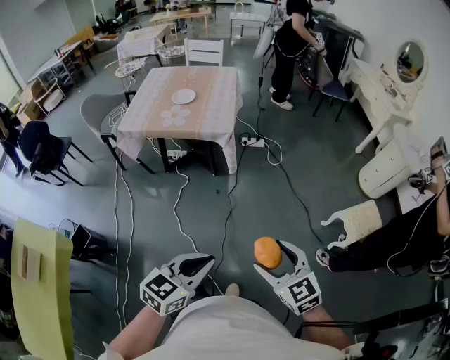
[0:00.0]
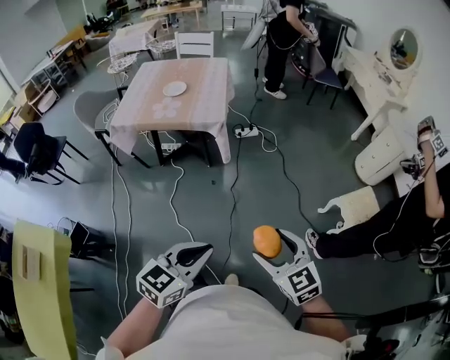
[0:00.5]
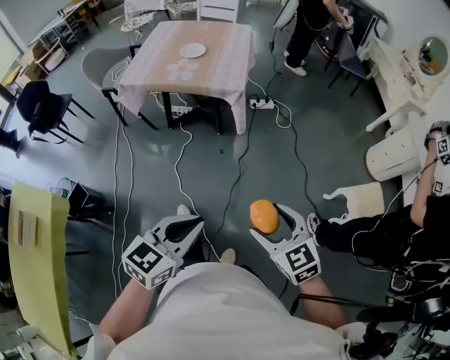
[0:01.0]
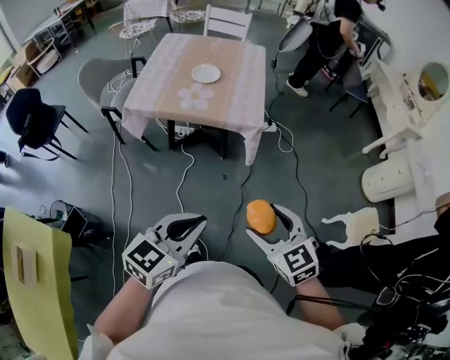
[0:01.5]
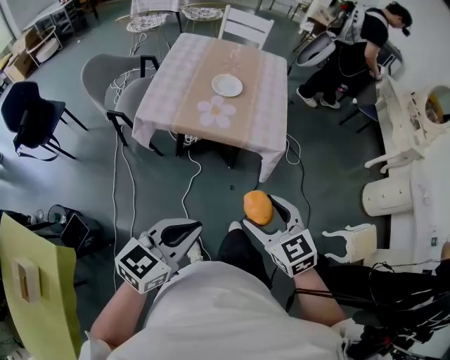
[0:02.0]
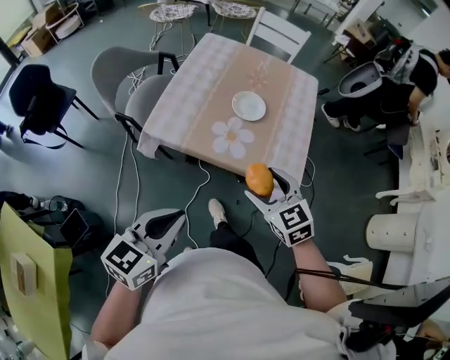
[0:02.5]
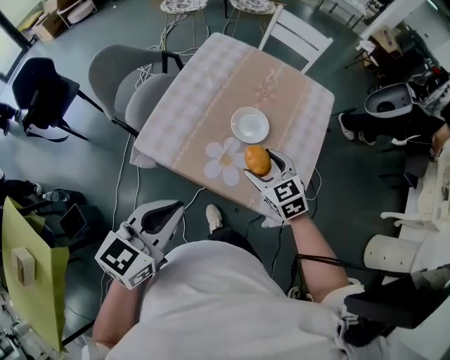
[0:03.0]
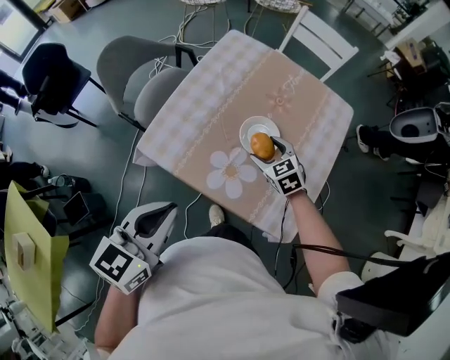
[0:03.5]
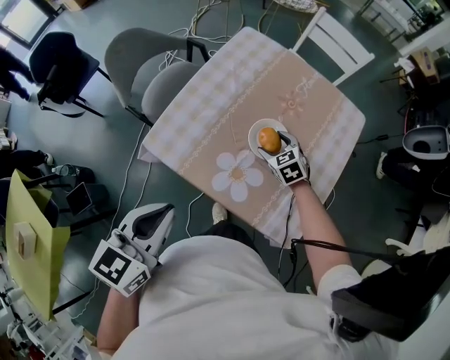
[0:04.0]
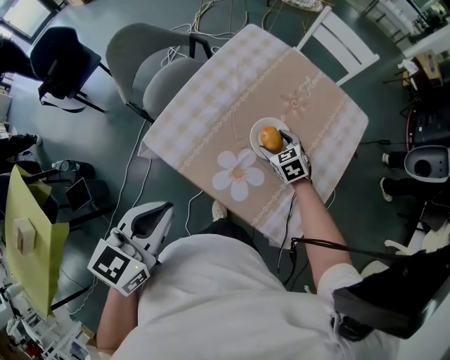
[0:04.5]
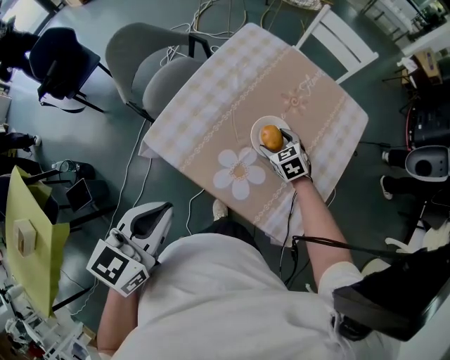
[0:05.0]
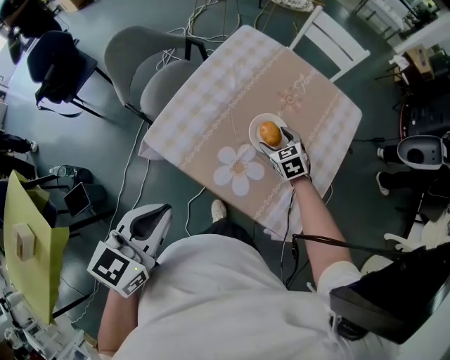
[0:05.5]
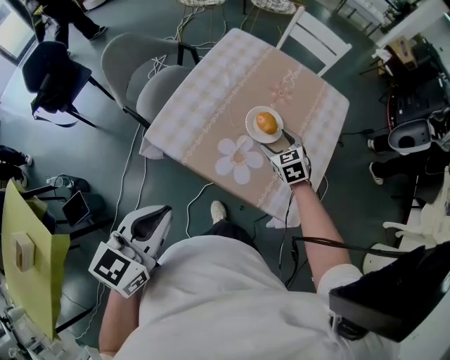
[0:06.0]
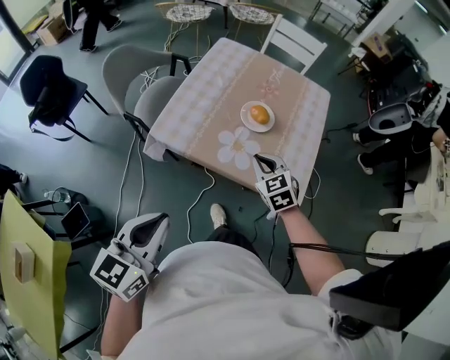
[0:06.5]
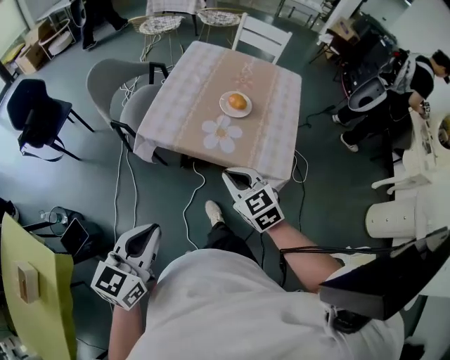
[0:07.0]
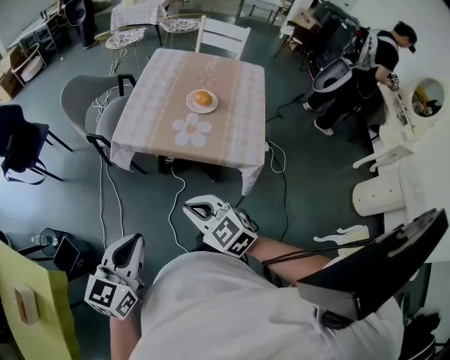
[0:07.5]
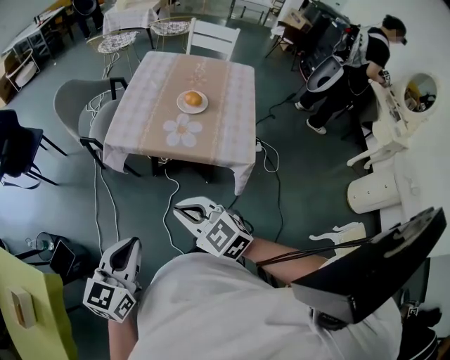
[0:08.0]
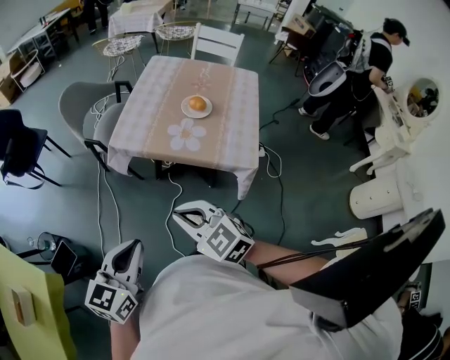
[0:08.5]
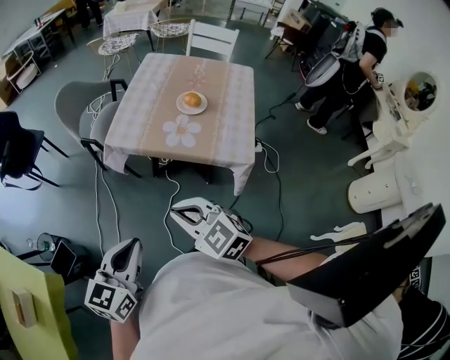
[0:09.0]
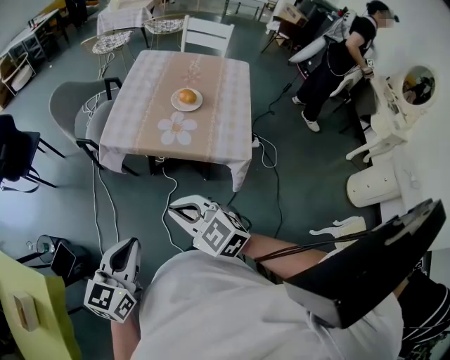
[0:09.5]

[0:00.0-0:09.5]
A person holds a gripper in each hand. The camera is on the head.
0:00.0 to 0:02.0: Both grippers move to the left and forward, some 40 cm.
0:02.0 to 0:04.0: The right gripper ends up roughly 60 cm from where it was, and changes its angle by roughly 30 degrees, while the left gripper shifts by some 35 cm, and changes its angle by about 40 degrees.
0:04.0 to 0:05.5: The grippers stay close to where they were, moving slightly.
0:05.5 to 0:07.5: The right gripper heads backward, covering approximately 50 cm, and closes up. The left gripper shifts about 30 cm backward.
0:07.5 to 0:09.5: The grippers stay close to where they were, moving slightly.

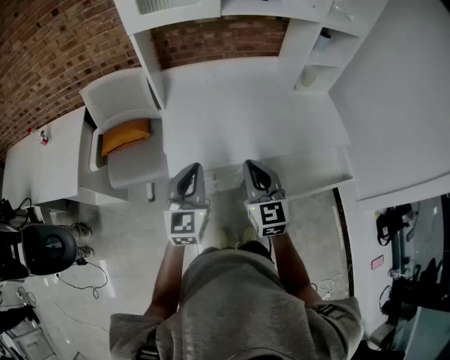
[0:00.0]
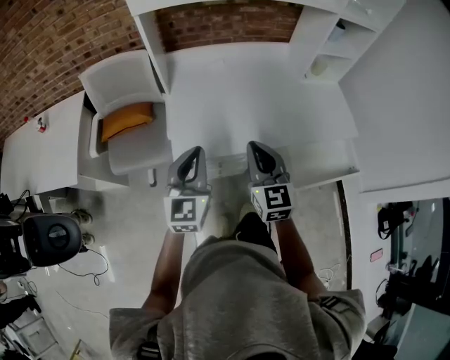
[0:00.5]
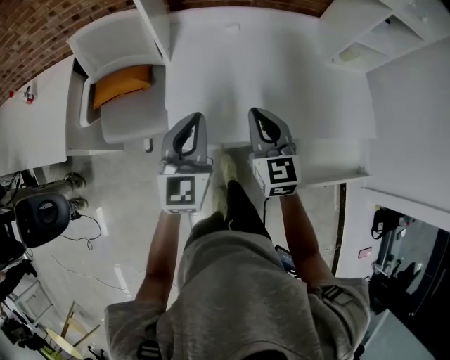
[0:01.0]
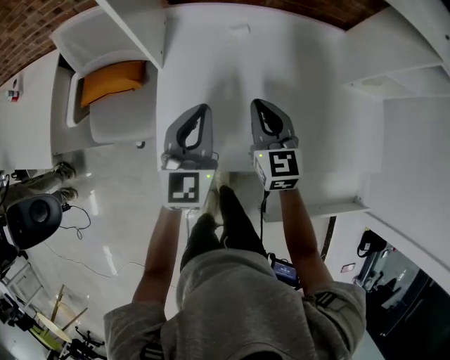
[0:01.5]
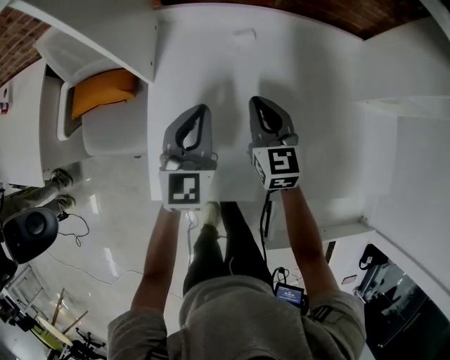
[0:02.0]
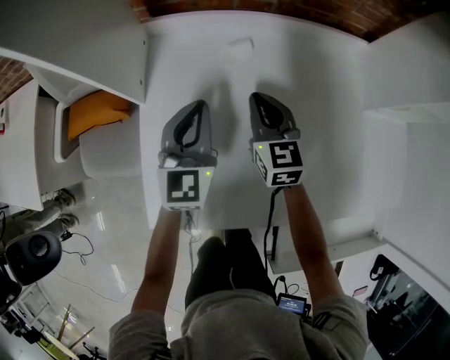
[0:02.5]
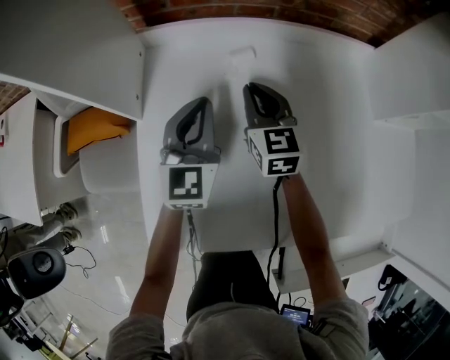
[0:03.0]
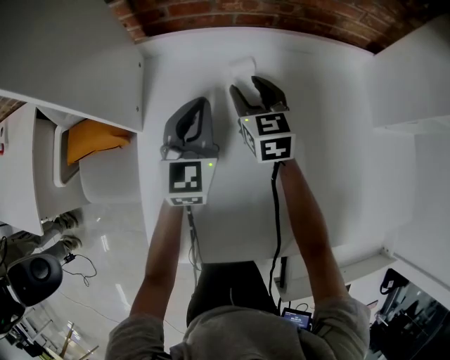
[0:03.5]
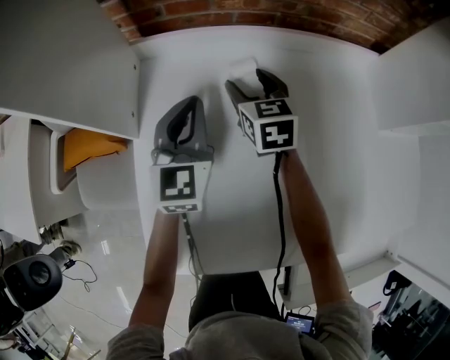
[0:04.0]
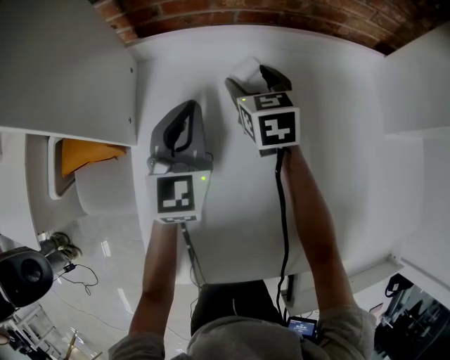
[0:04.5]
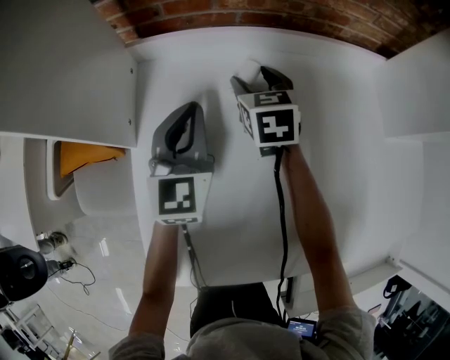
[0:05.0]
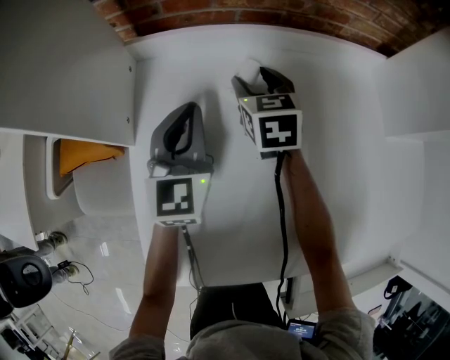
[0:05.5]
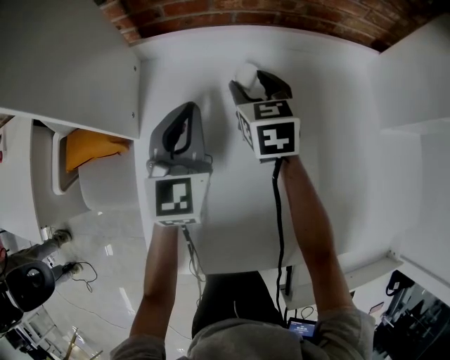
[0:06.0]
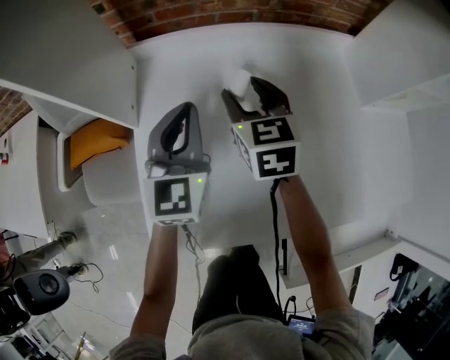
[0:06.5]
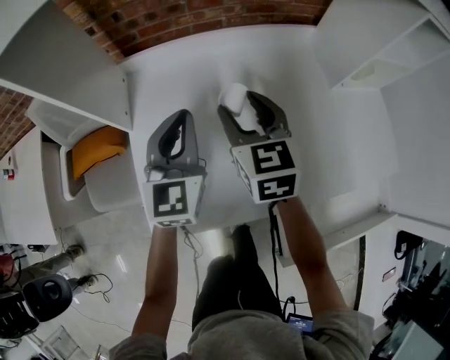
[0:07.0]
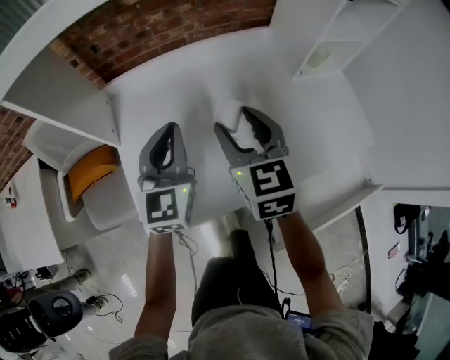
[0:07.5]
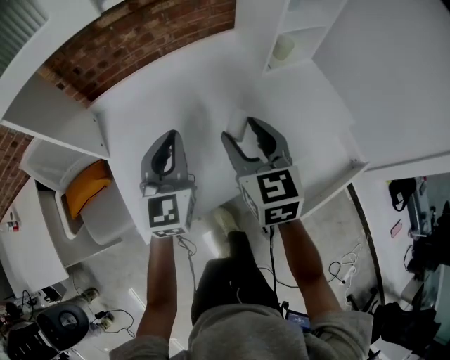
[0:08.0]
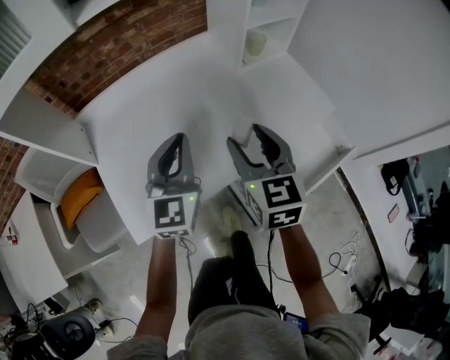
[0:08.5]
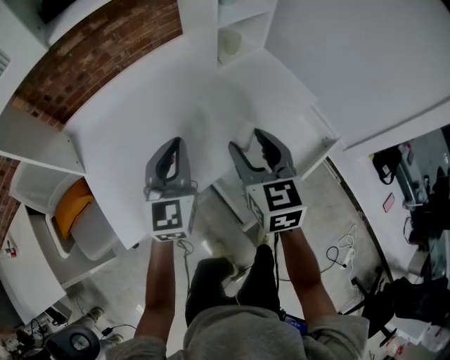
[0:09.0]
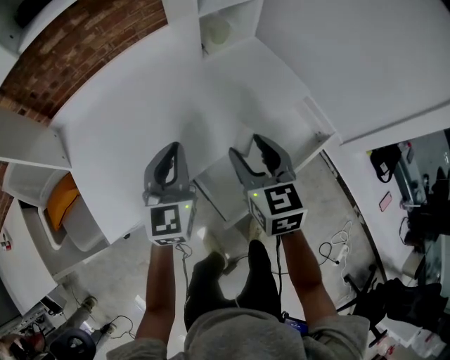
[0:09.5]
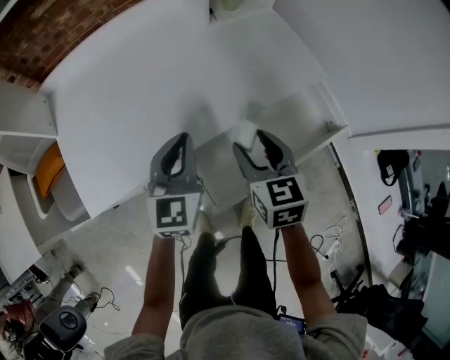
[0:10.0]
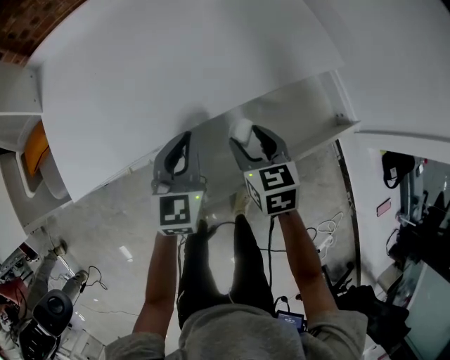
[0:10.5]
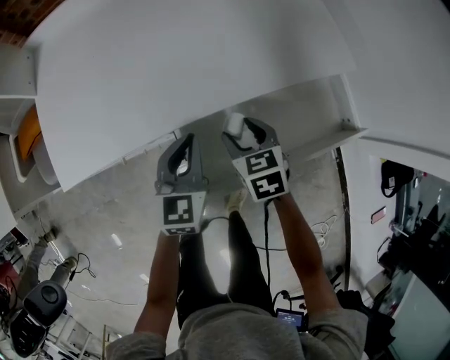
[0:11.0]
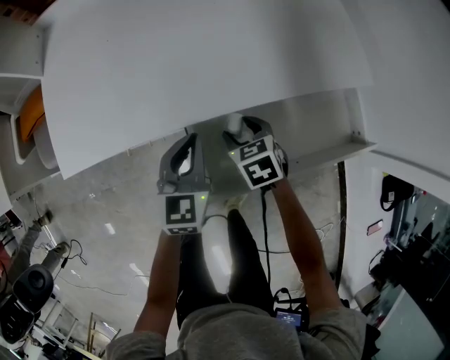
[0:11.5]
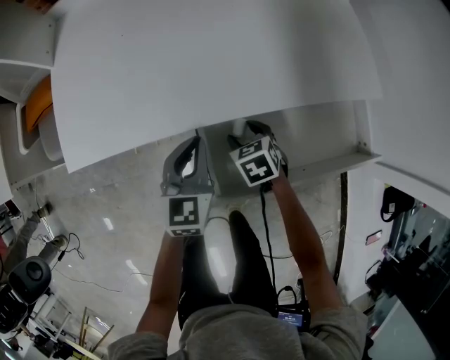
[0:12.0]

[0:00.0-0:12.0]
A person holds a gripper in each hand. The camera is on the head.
0:00.0 to 0:02.0: The two grippers go roughly 40 cm forward and downward.
0:02.0 to 0:04.0: The two grippers go roughly 20 cm forward and downward. The right gripper opens.
0:04.0 to 0:06.0: The grippers stay close to where they were, moving slightly.
0:06.0 to 0:08.0: Both grippers travel together backward, upward and to the right, approximately 40 cm. The right gripper swivels about 20 degrees. Meanwhile the left gripper turns by roughly 20 degrees.
0:08.0 to 0:10.0: The right gripper moves to the right, downward and backward, approximately 30 cm, while the left gripper shifts some 25 cm to the right and downward.
0:10.0 to 0:12.0: The left gripper is displaced downward by about 15 cm, and swivels approximately 20 degrees; the right gripper travels downward by about 25 cm, and tips its fingers downward by some 30 degrees.

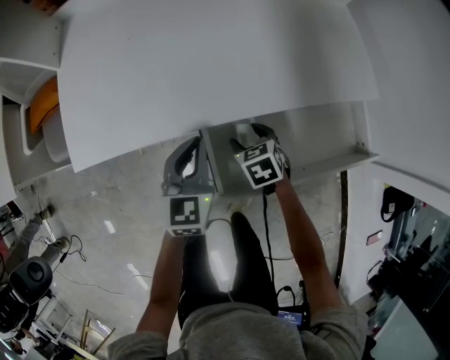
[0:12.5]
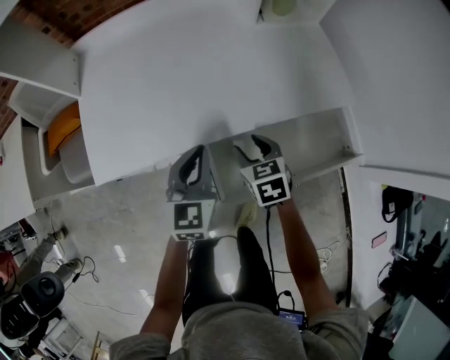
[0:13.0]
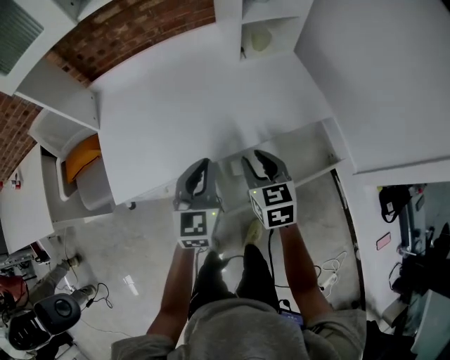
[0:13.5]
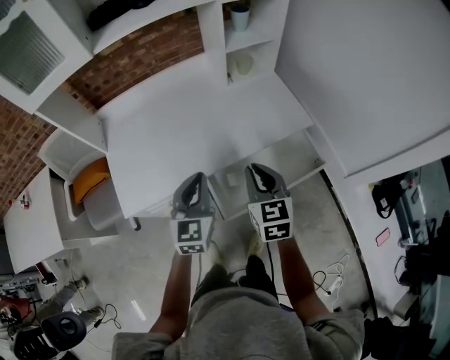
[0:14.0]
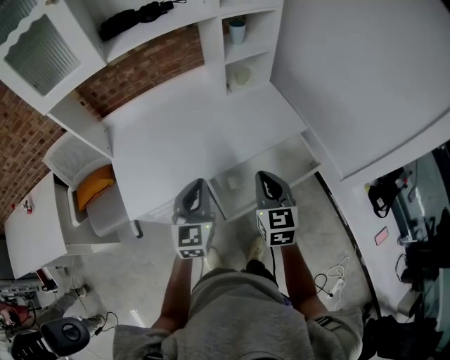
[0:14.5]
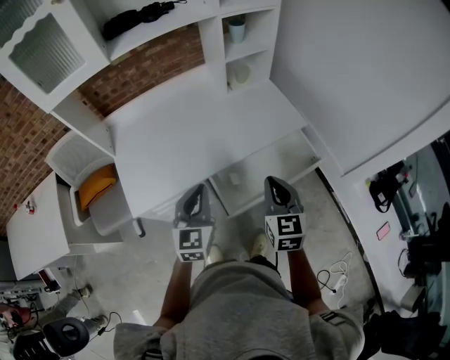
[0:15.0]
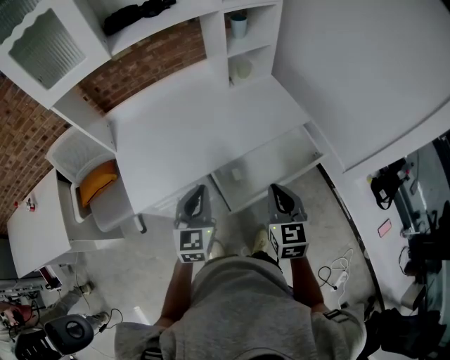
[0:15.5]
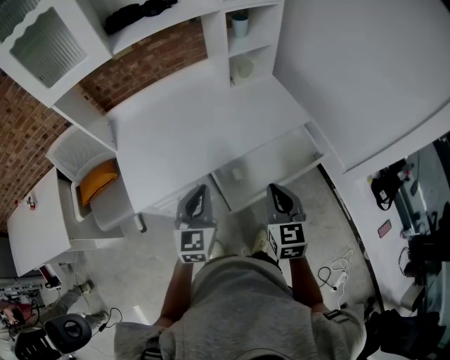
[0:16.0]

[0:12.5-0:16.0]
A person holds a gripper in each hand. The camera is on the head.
0:12.5 to 0:14.5: The grippers both shift upward by approximately 35 cm. The right gripper angles its fingers upward, by about 40 degrees, and closes up.
0:14.5 to 0:16.0: The right gripper shifts some 5 cm backward. Meanwhile the left gripper moves approximately 5 cm.

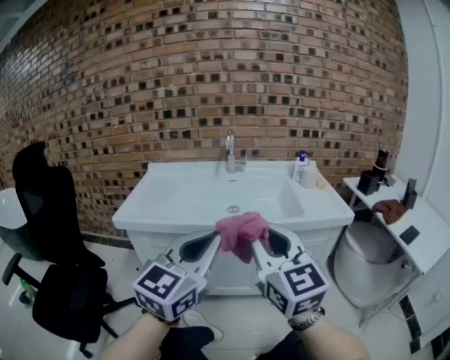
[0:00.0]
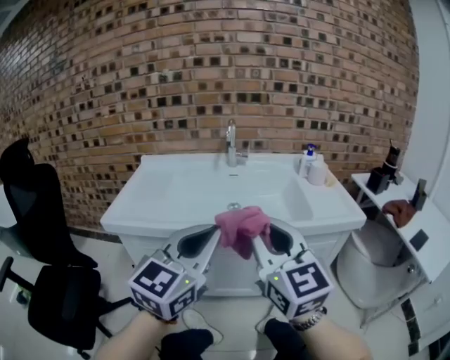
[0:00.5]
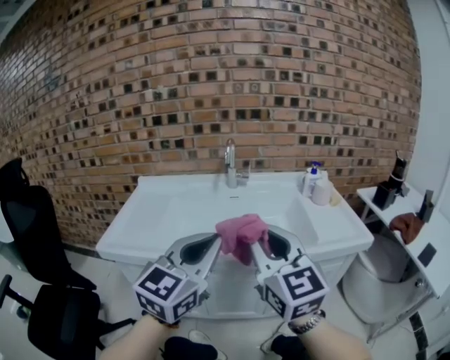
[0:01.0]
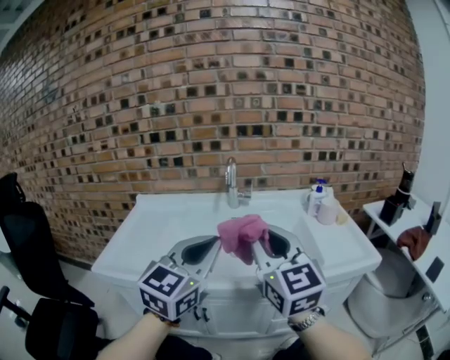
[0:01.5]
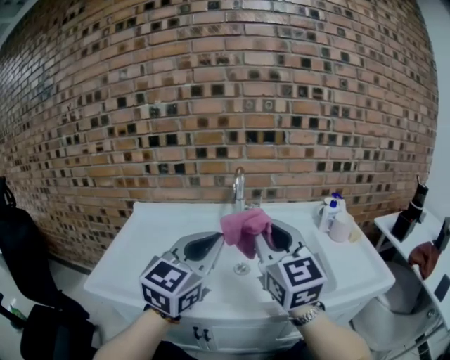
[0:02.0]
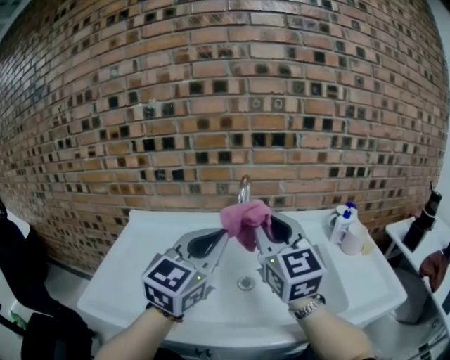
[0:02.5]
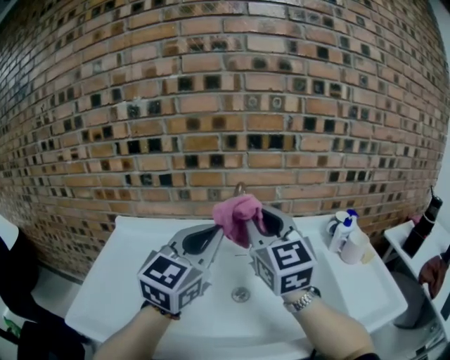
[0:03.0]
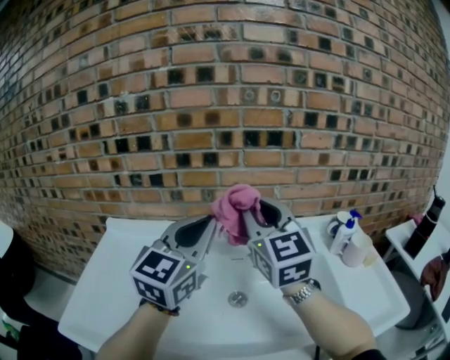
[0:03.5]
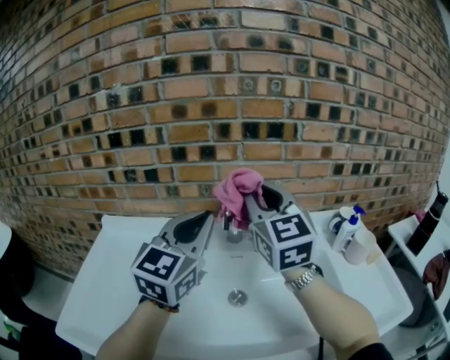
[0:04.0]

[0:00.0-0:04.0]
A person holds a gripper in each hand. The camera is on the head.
0:00.0 to 0:02.0: Both grippers travel together forward, roughly 35 cm.
0:02.0 to 0:04.0: The grippers both shift forward by some 20 cm.
